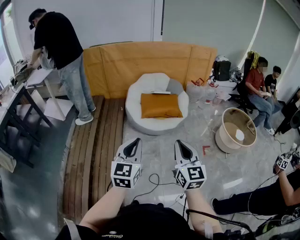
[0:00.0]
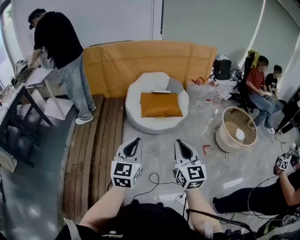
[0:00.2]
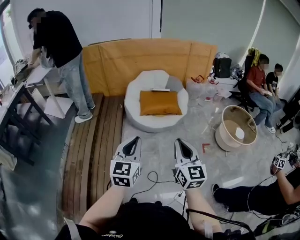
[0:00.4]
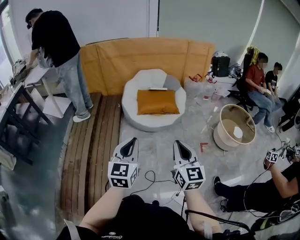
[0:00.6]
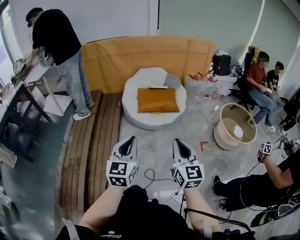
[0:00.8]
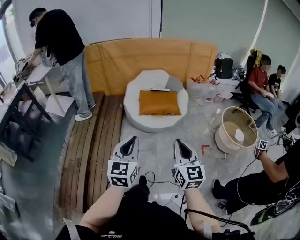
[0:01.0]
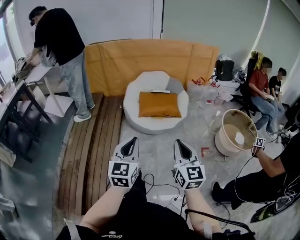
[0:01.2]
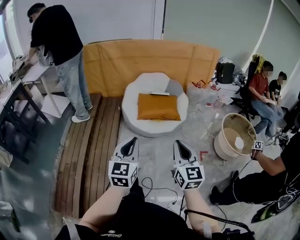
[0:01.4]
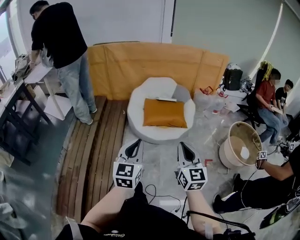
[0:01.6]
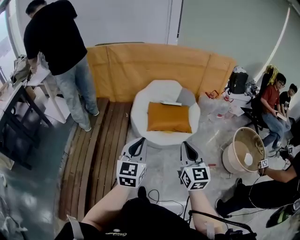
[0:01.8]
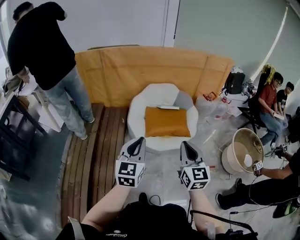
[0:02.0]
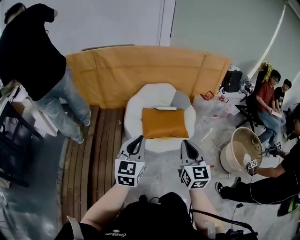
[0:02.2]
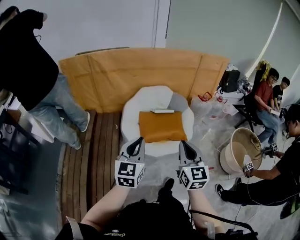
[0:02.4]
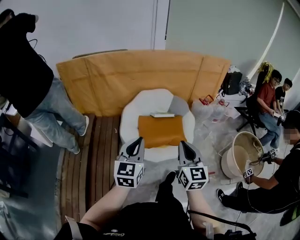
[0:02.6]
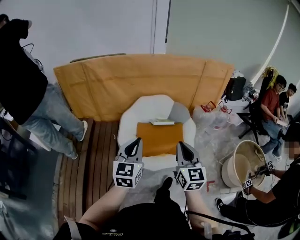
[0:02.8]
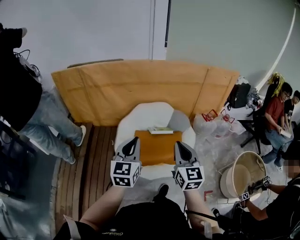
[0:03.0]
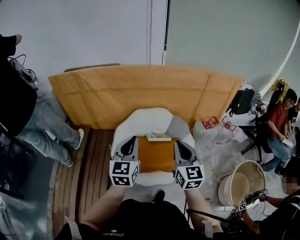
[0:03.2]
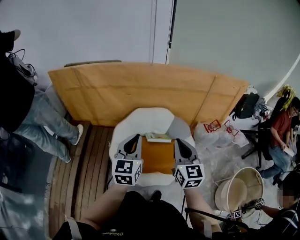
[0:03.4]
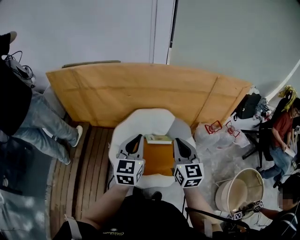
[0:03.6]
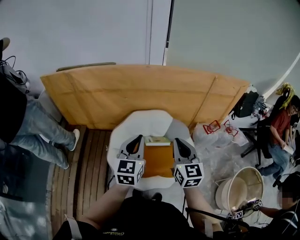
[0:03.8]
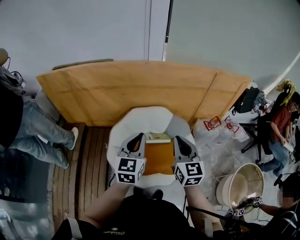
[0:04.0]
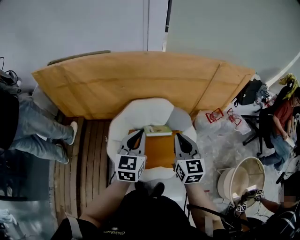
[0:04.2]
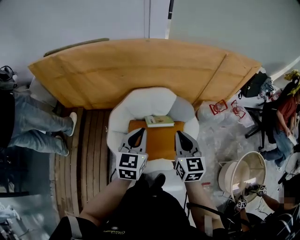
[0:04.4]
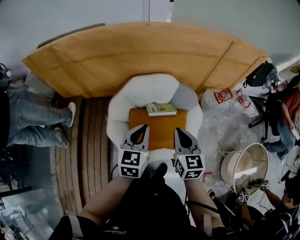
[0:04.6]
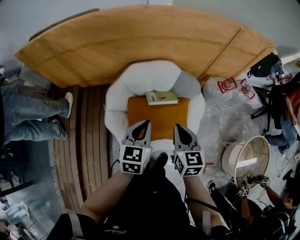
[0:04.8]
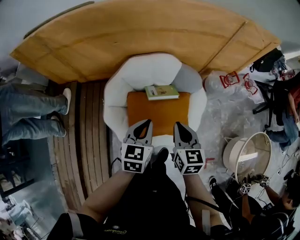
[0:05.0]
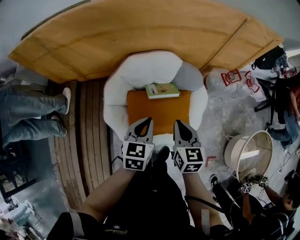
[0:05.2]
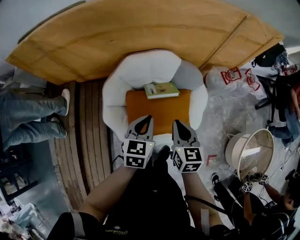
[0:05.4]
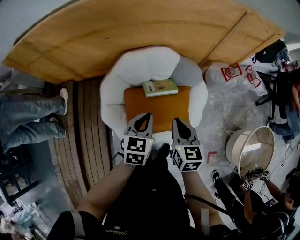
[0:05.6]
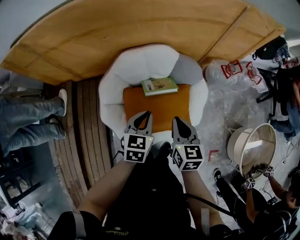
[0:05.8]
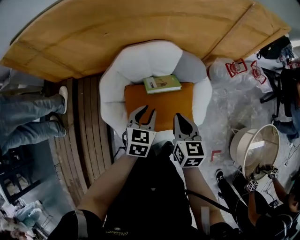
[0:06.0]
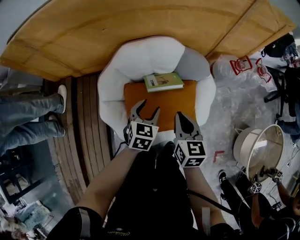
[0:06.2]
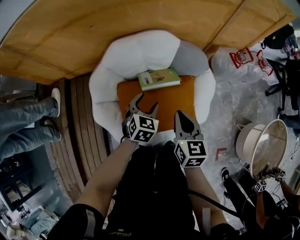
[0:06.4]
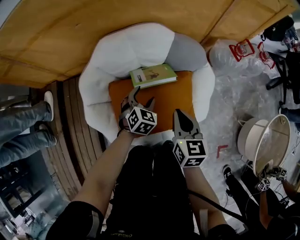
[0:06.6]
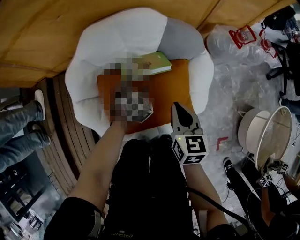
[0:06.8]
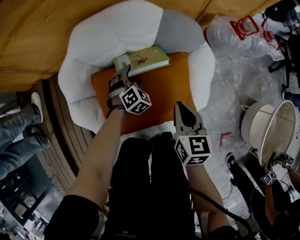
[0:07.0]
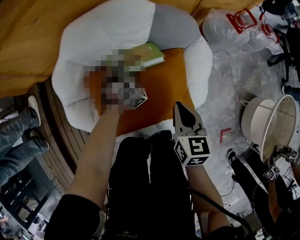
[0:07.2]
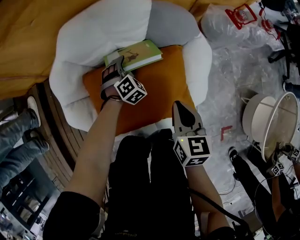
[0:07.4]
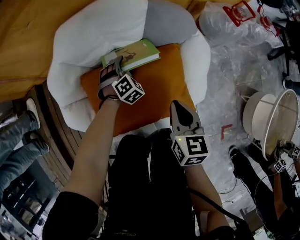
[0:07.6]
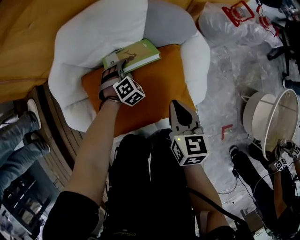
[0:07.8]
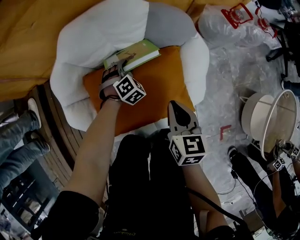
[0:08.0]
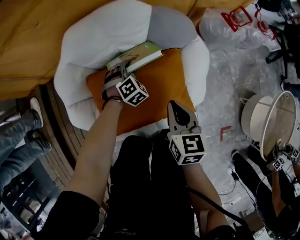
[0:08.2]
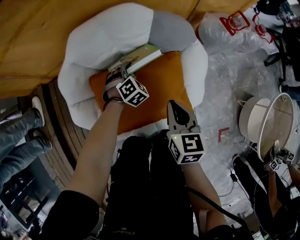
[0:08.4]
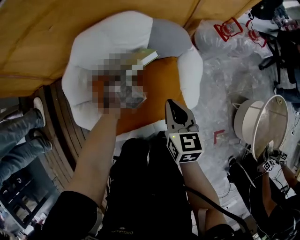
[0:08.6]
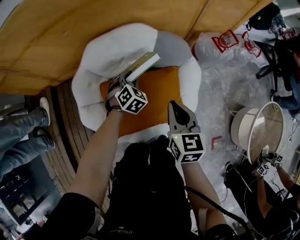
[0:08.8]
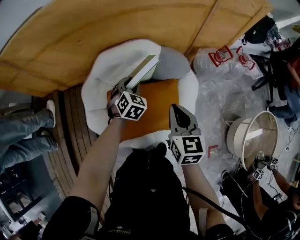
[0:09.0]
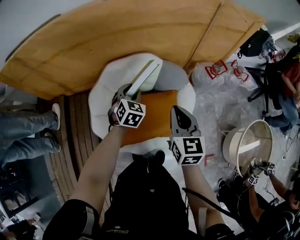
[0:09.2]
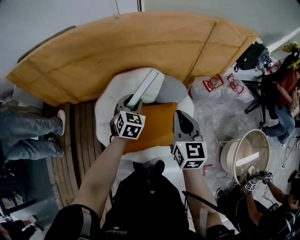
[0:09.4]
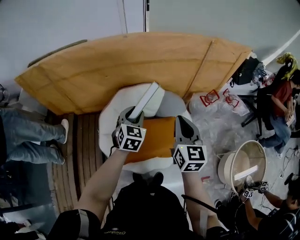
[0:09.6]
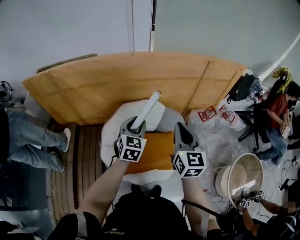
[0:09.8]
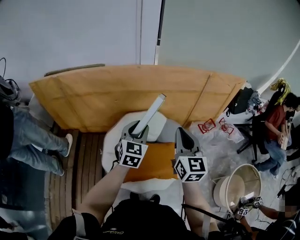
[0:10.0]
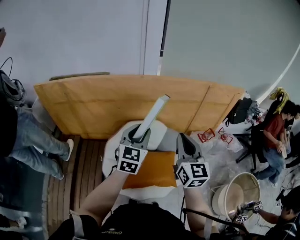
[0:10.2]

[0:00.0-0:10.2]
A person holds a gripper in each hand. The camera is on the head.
0:00.0 to 0:01.4: Both grippers move forward and to the right, roughly 10 cm.
0:01.4 to 0:03.0: The pair of grippers is taken forward, roughly 60 cm.
0:03.0 to 0:04.4: The two grippers go roughly 25 cm forward.
0:04.4 to 0:05.8: Both grippers travel together downward, roughly 20 cm.
0:05.8 to 0:07.2: The left gripper goes roughly 40 cm downward, twists roughly 50 degrees clockwise, seen from behind, and opens. Meanwhile the right gripper heads downward, covering about 25 cm.
0:07.2 to 0:08.8: The two grippers go approximately 15 cm upward. The left gripper closes its fingers.
0:08.8 to 0:10.2: The grippers both shift upward by roughly 50 cm. The right gripper angles its fingers upward, by roughly 30 degrees. Meanwhile the left gripper tilts its fingers roughly 40 degrees upward.

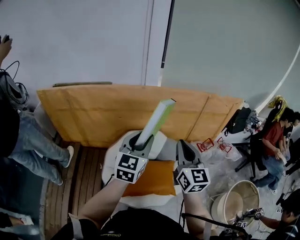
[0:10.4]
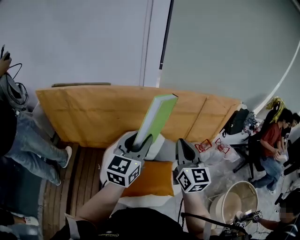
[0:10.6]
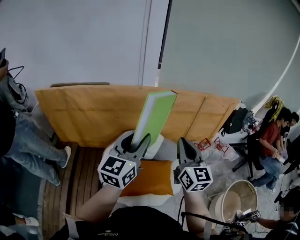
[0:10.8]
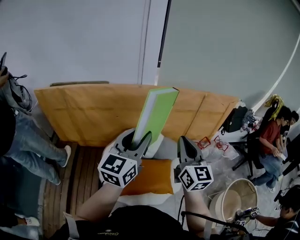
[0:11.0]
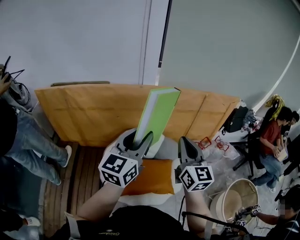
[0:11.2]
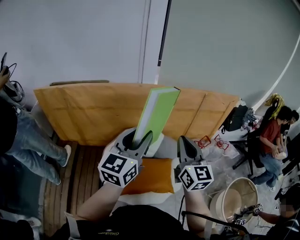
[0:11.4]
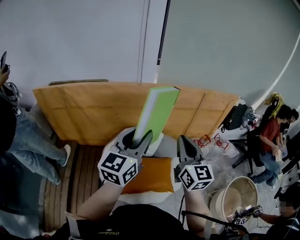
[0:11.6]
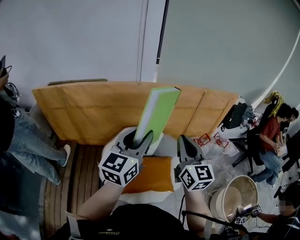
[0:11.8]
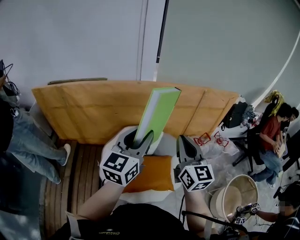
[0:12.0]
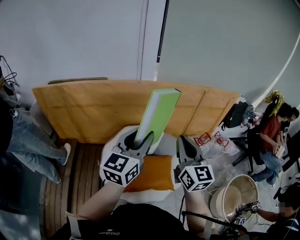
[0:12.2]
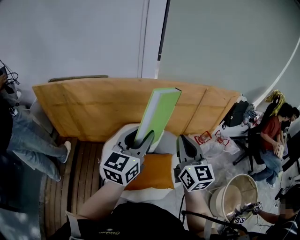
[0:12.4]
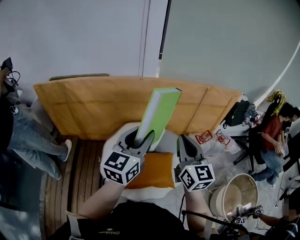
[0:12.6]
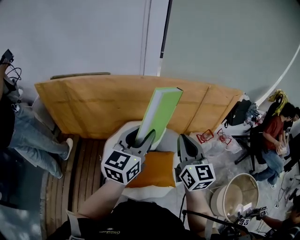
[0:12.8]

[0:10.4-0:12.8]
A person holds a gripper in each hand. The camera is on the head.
0:10.4 to 0:11.6: The left gripper goes some 5 cm upward.
0:11.6 to 0:12.8: The grippers make only small movements.

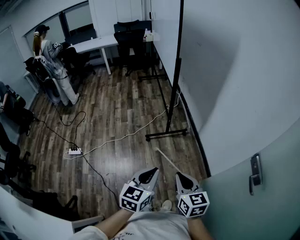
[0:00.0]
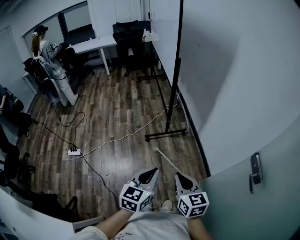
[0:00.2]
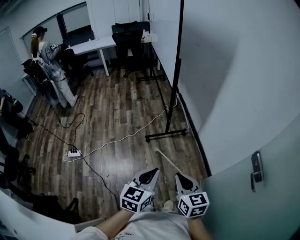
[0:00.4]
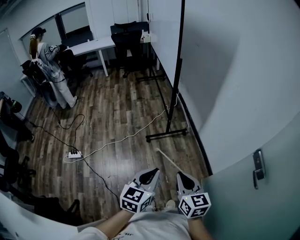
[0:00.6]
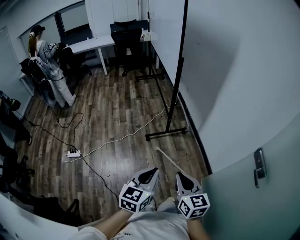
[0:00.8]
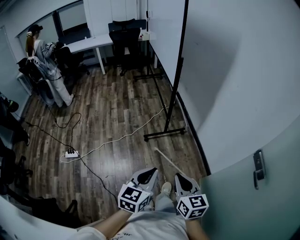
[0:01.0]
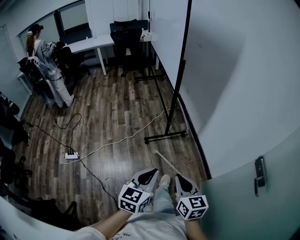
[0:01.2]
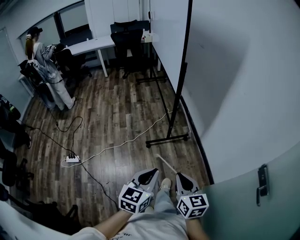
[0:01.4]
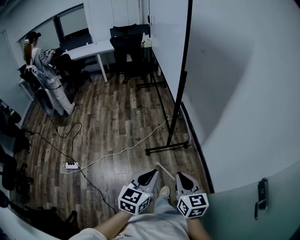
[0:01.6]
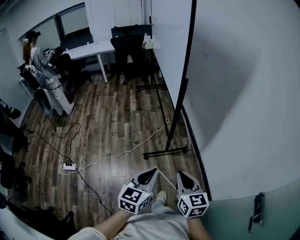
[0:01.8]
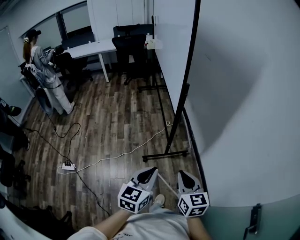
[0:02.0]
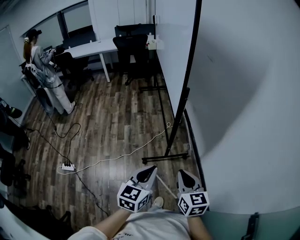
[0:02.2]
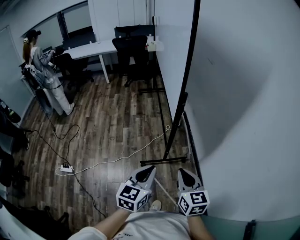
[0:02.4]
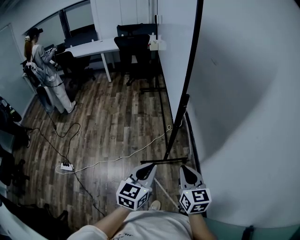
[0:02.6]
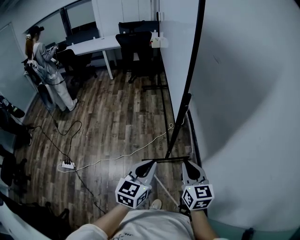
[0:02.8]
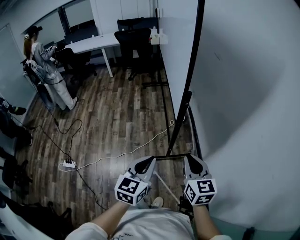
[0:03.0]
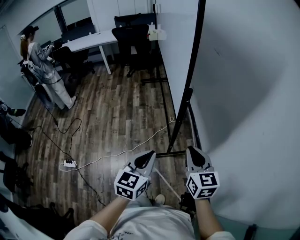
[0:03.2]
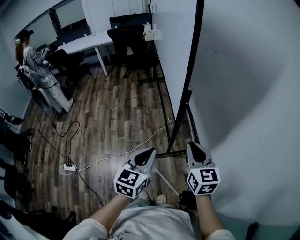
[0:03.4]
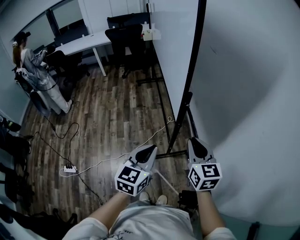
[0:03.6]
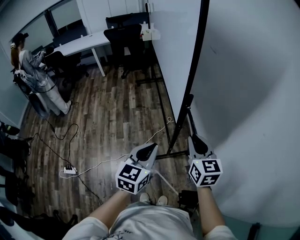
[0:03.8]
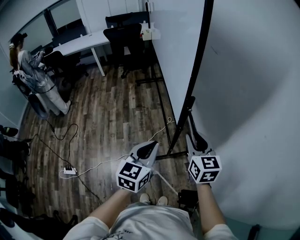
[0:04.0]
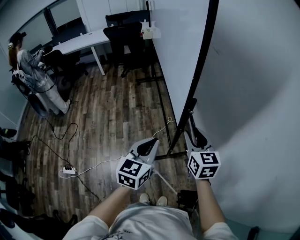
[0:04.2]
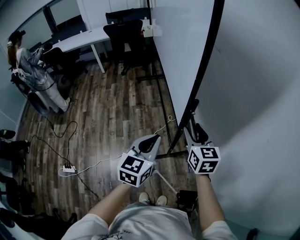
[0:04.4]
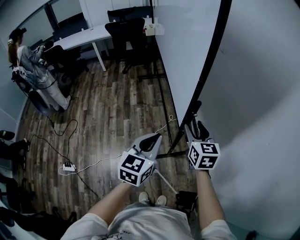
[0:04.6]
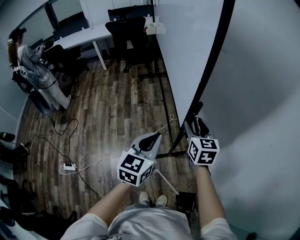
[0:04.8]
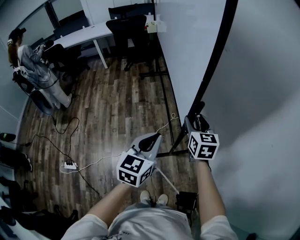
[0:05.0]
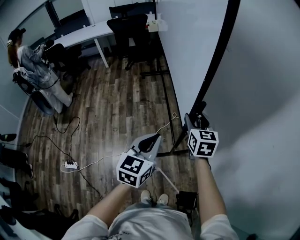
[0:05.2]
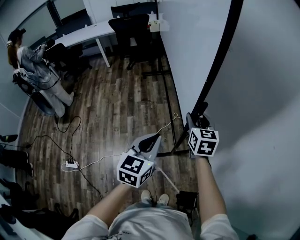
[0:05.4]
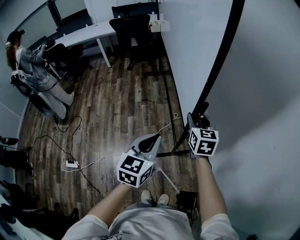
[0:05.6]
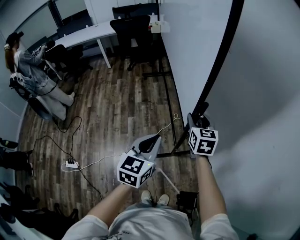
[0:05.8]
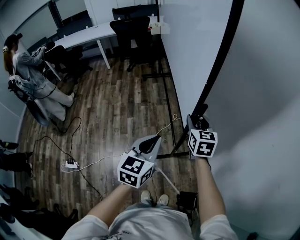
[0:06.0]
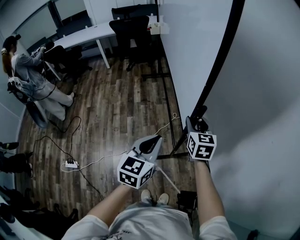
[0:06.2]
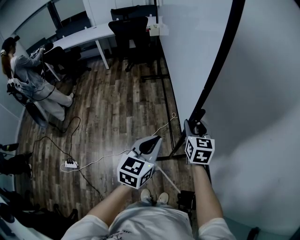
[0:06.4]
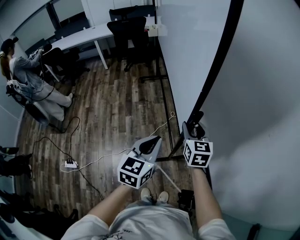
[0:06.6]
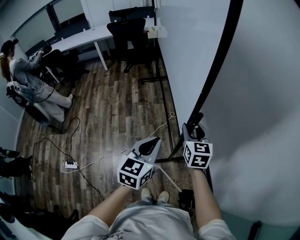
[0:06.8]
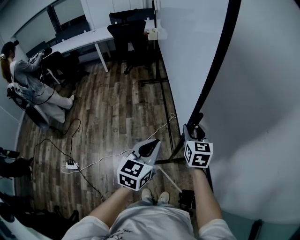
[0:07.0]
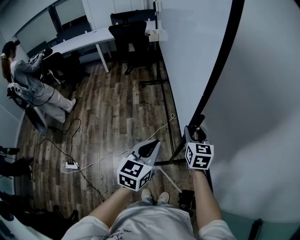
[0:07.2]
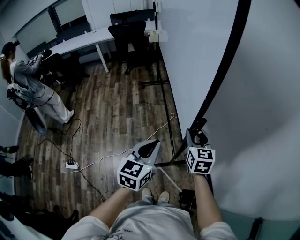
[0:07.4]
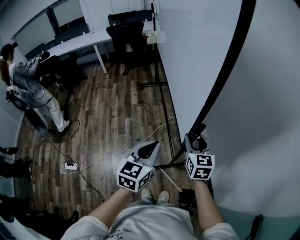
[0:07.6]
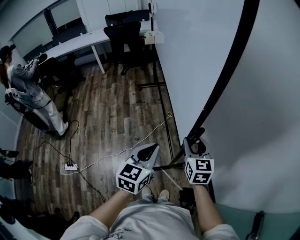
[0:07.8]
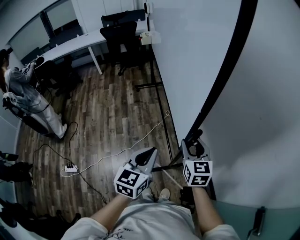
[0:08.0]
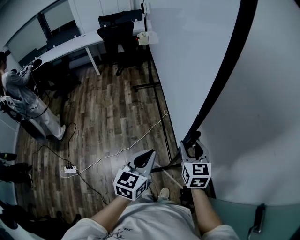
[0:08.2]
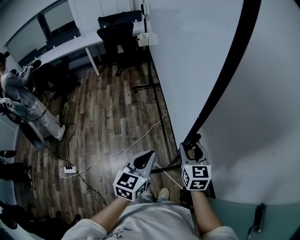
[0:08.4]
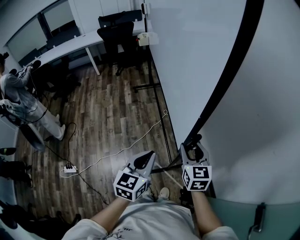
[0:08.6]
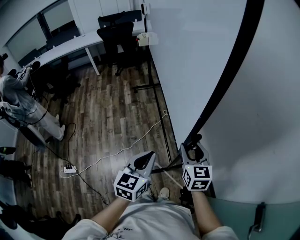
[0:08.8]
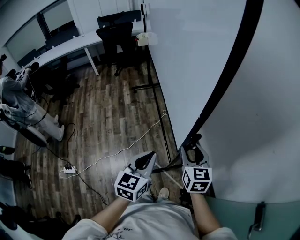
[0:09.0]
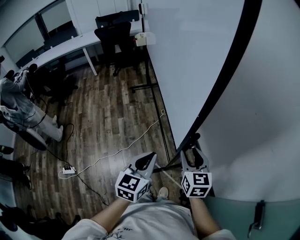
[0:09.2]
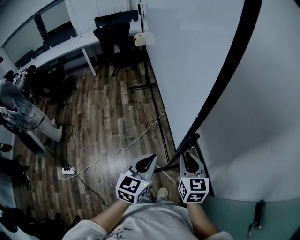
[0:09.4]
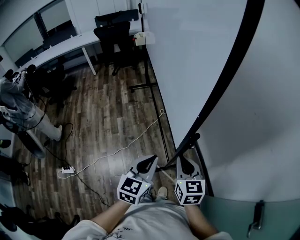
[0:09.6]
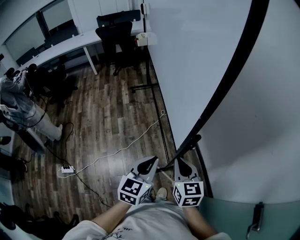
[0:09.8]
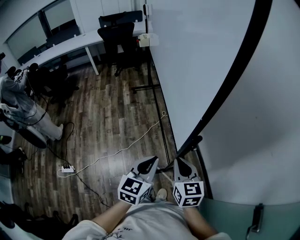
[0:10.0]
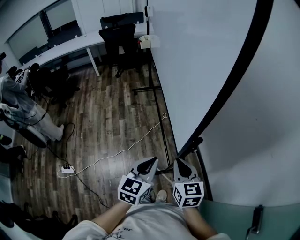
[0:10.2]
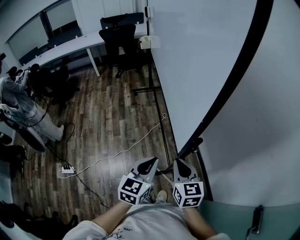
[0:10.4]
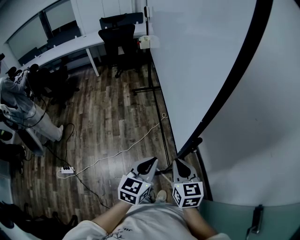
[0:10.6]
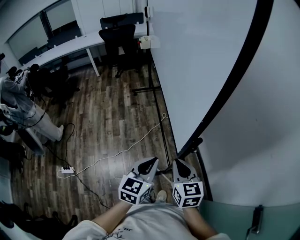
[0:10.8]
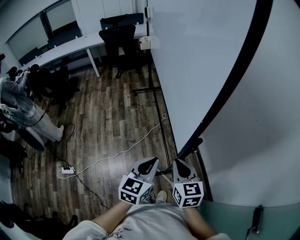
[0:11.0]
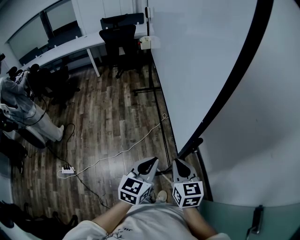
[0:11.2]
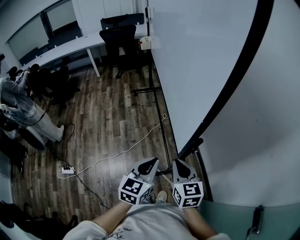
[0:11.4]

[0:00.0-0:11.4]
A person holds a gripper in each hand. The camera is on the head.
0:00.0 to 0:01.4: Both grippers travel together forward and to the left, about 10 cm.
0:01.4 to 0:02.8: Both grippers move forward, some 30 cm.
0:02.8 to 0:04.2: The grippers both shift forward by roughly 15 cm. The right gripper opens.
0:04.2 to 0:05.6: The left gripper is displaced forward by about 5 cm; the right gripper moves forward, about 15 cm.
0:05.6 to 0:07.2: Both grippers move backward, some 10 cm.
0:07.2 to 0:08.6: The left gripper moves backward, roughly 5 cm. Meanwhile the right gripper moves backward, about 10 cm.
0:08.6 to 0:10.0: The right gripper moves backward, roughly 5 cm, and closes up.
0:10.0 to 0:11.4: Both grippers stay about where they are.
